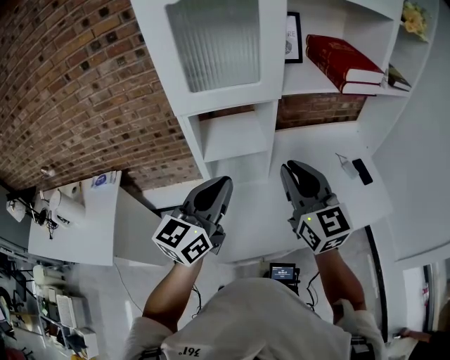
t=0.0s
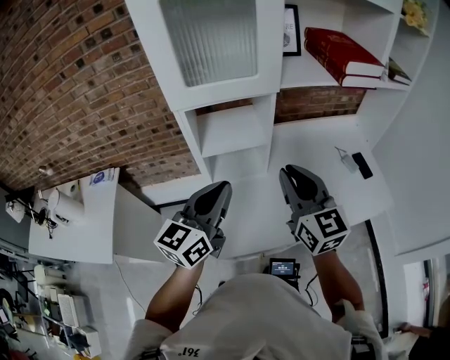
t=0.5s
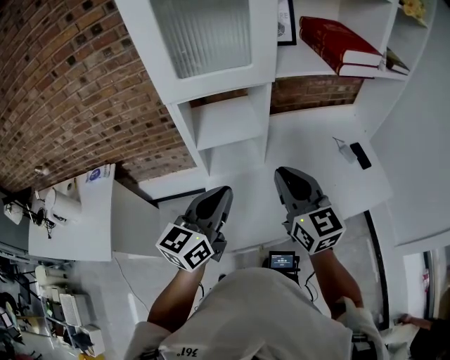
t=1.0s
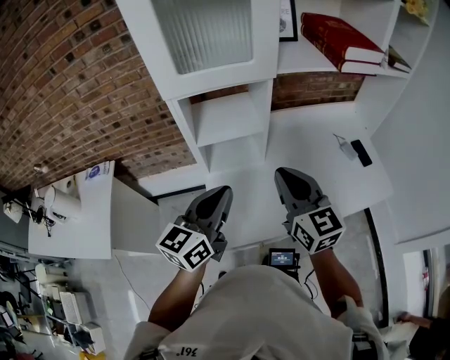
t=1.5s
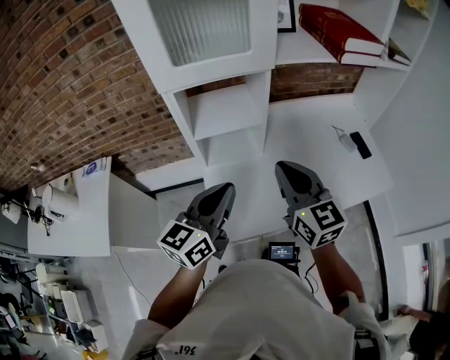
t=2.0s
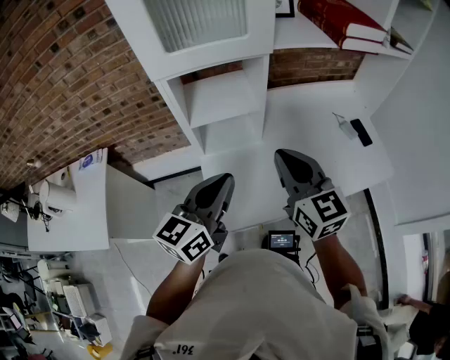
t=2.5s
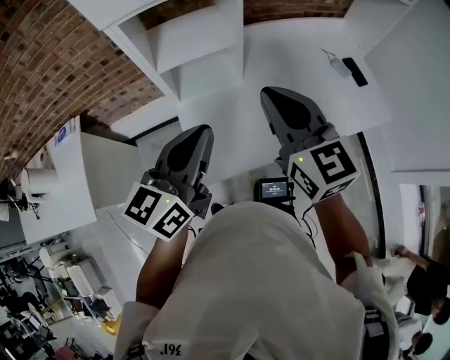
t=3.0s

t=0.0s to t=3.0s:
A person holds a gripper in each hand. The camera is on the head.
t=0.0s to t=1.5s: Both grippers travel together downward, some 5 cm.
t=1.5s to t=3.0s: There are only small adjustments of the grippers.

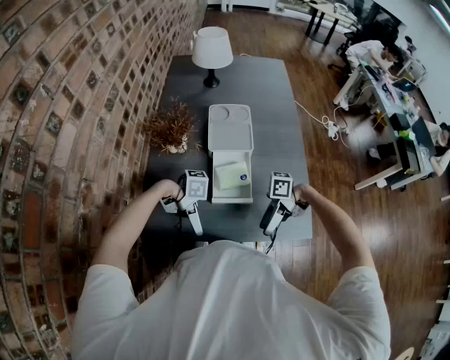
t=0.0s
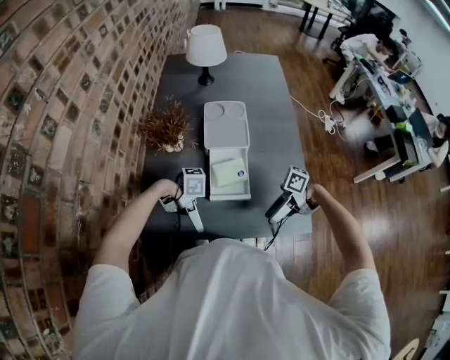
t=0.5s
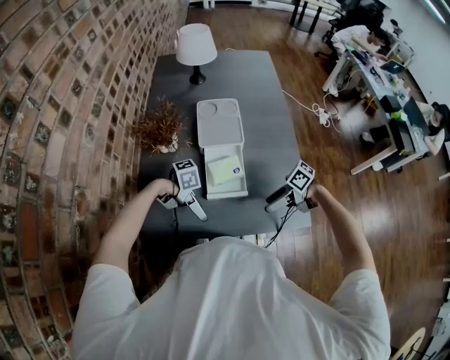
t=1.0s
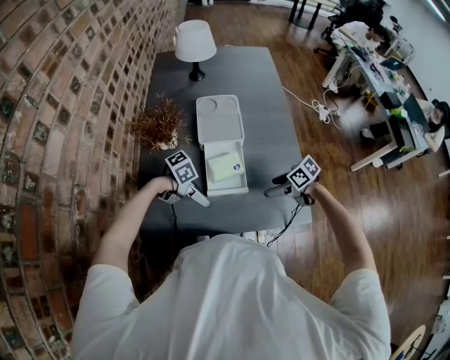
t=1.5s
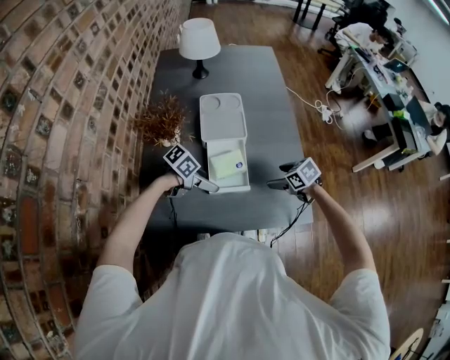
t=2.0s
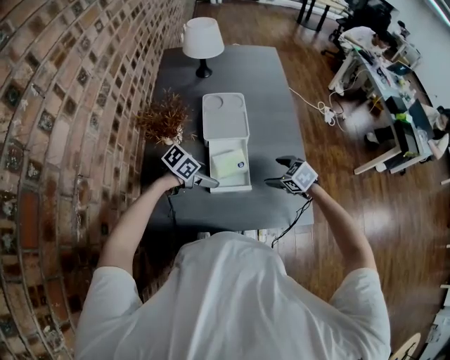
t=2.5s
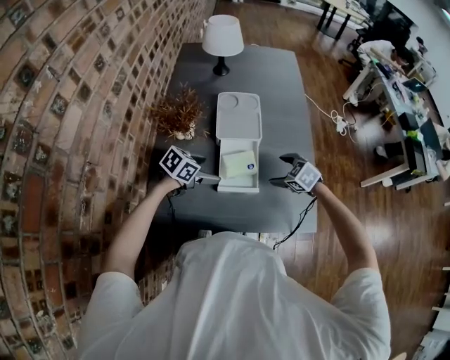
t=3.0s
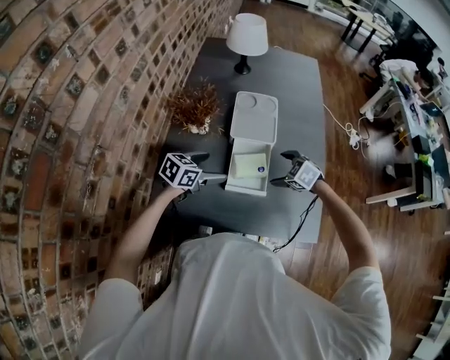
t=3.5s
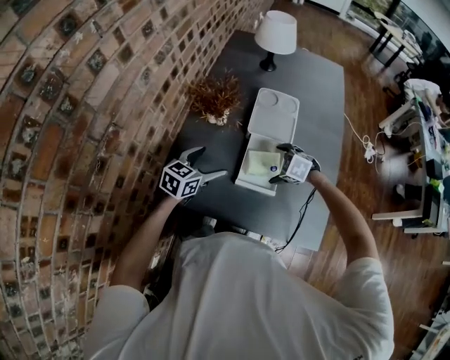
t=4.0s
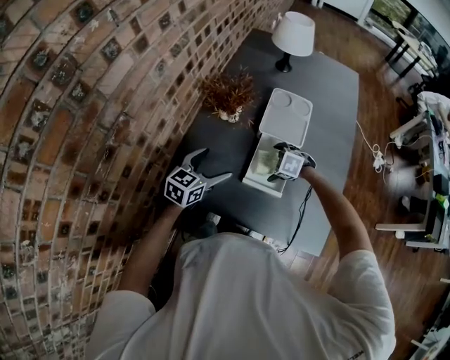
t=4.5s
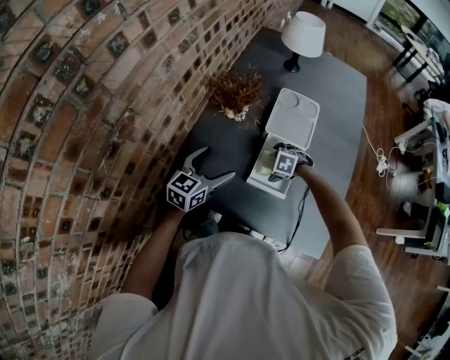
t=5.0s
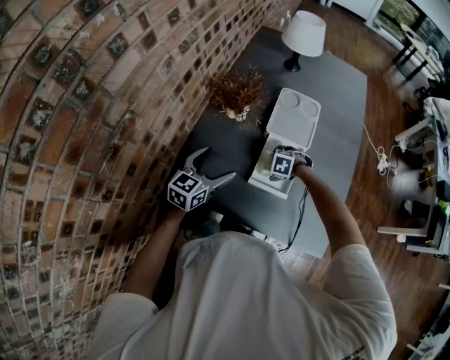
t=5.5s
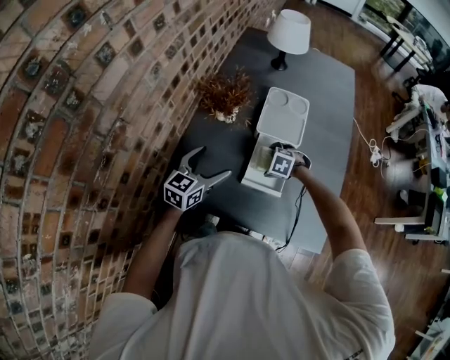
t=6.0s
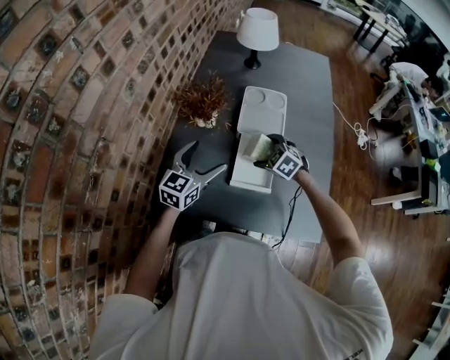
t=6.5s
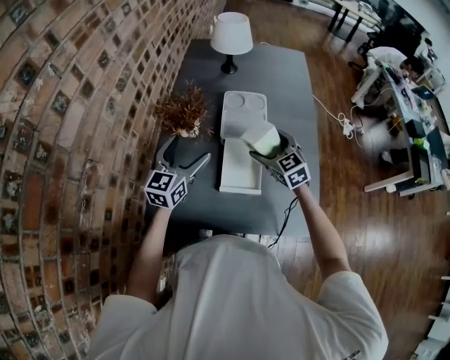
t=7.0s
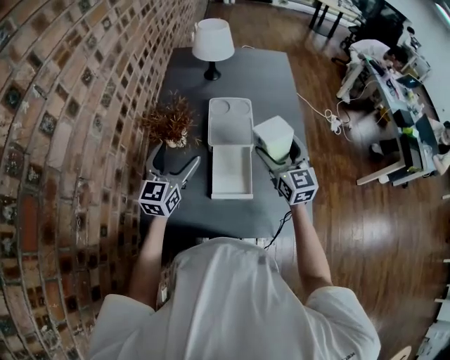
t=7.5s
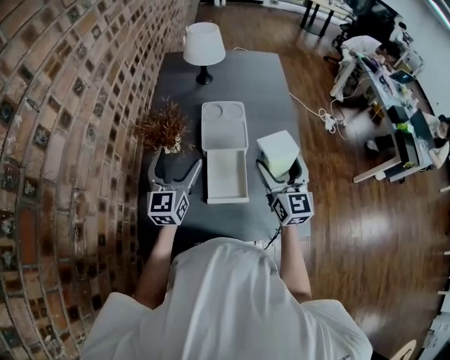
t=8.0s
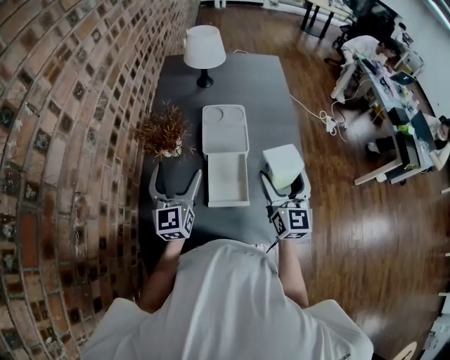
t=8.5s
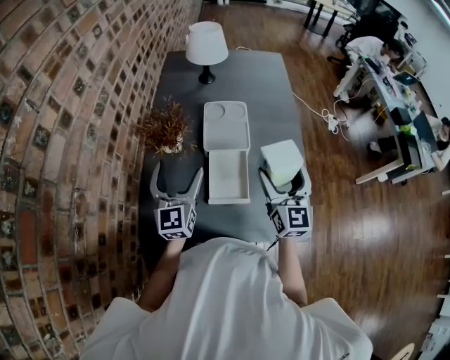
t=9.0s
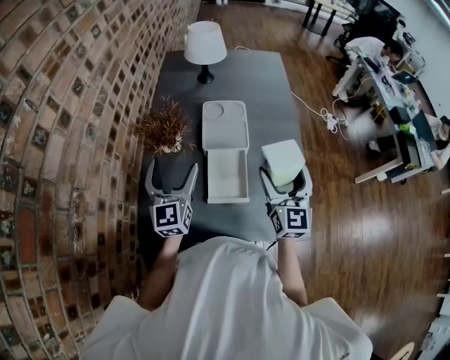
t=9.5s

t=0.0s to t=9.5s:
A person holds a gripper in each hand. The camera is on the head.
t=0.0s to t=2.0s: The right gripper shifts by about 20 cm, and points its fingers roughly 50 degrees further downward, while the left gripper changes place by roughly 15 cm, and swivels roughly 50 degrees.
t=2.0s to t=4.0s: The left gripper shifts by roughly 15 cm, and turns by about 60 degrees. Meanwhile the right gripper ends up some 15 cm from where it was, and rotates around the line of its fingers by about 50 degrees, counterclockwise from behind.
t=4.0s to t=5.5s: The right gripper moves downward, some 5 cm.
t=5.5s to t=7.5s: The left gripper travels upward by about 10 cm. Meanwhile the right gripper goes some 30 cm upward, and angles its fingers upward, by approximately 80 degrees.
t=7.5s to t=9.5s: The right gripper travels backward by approximately 5 cm.

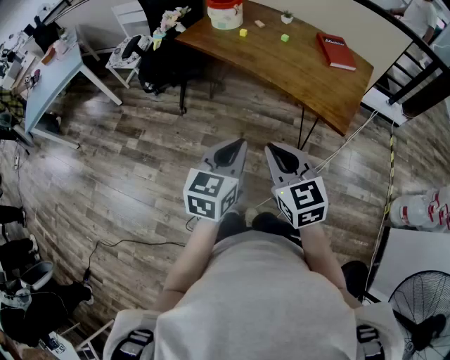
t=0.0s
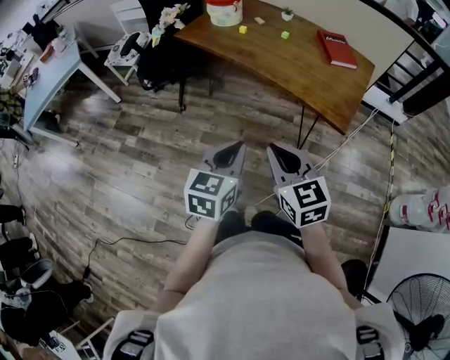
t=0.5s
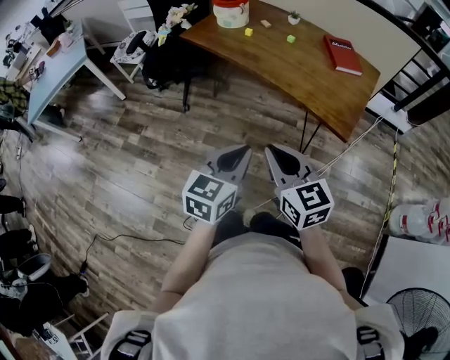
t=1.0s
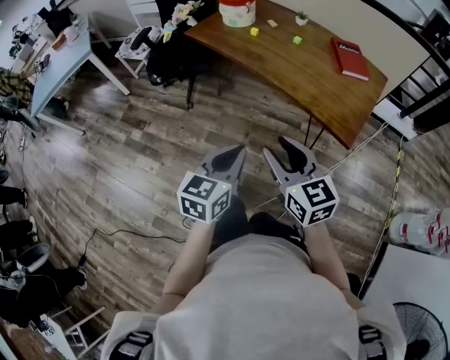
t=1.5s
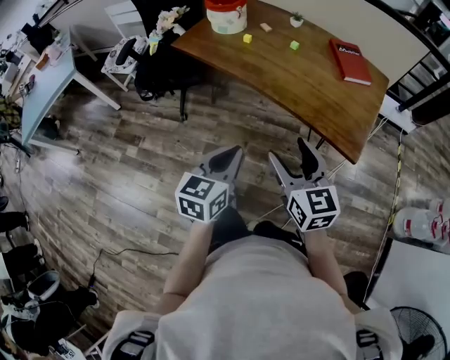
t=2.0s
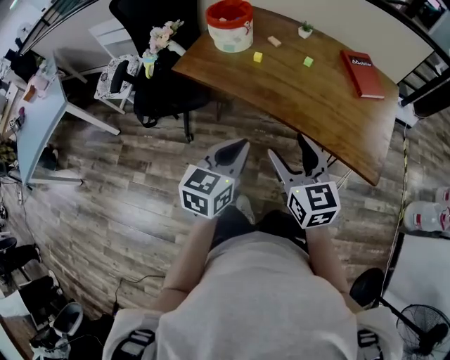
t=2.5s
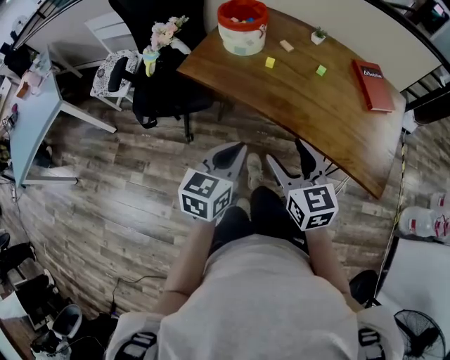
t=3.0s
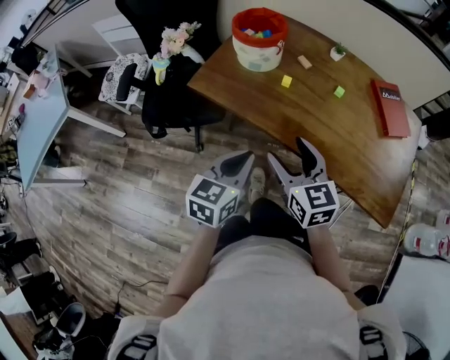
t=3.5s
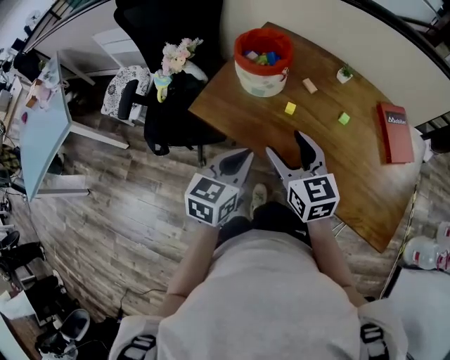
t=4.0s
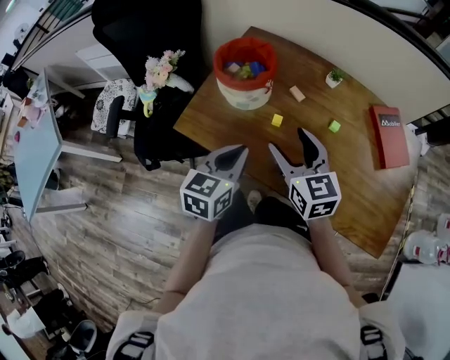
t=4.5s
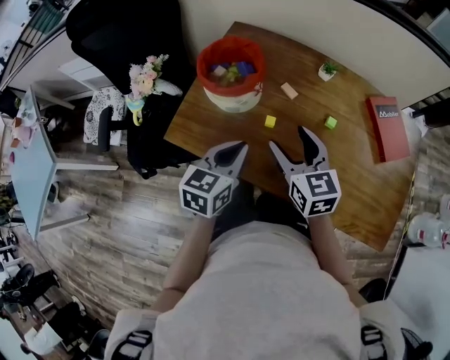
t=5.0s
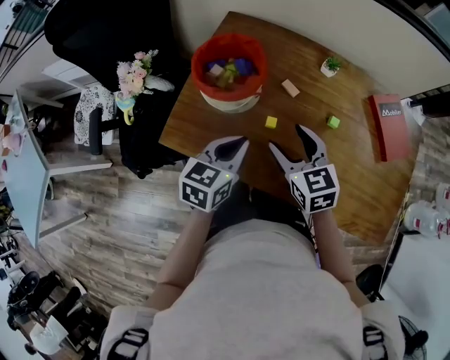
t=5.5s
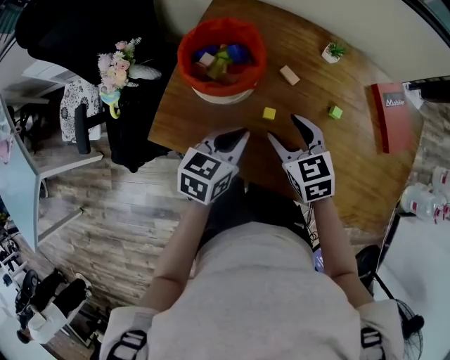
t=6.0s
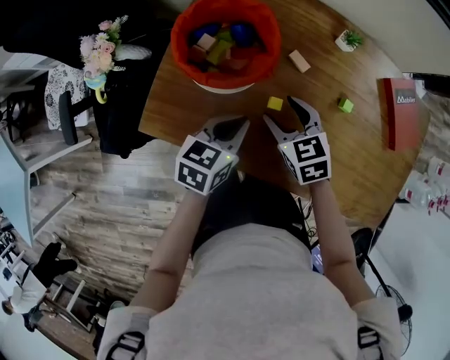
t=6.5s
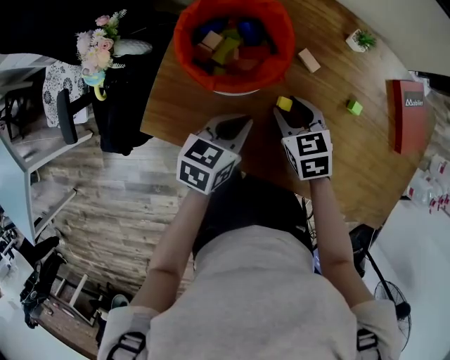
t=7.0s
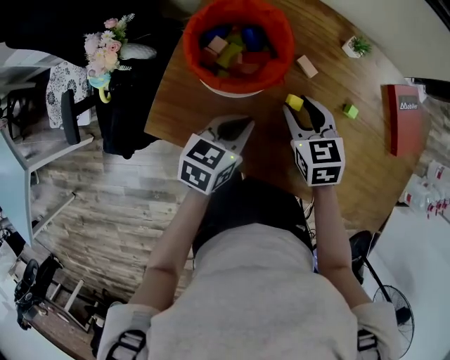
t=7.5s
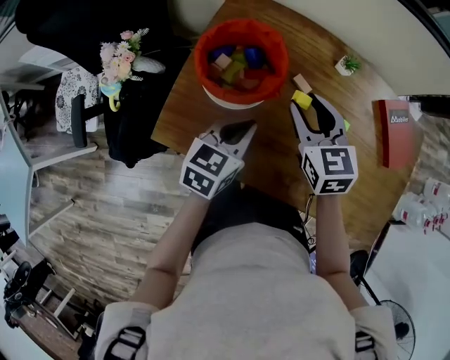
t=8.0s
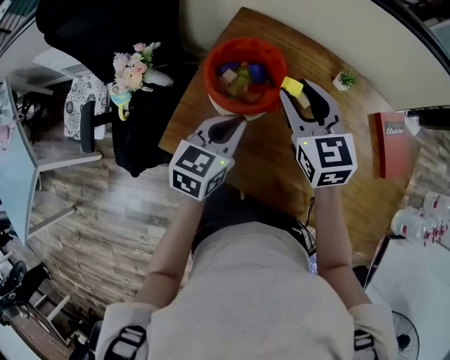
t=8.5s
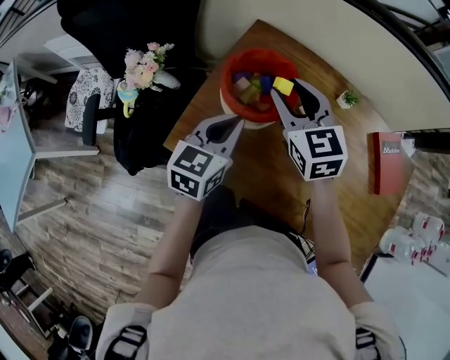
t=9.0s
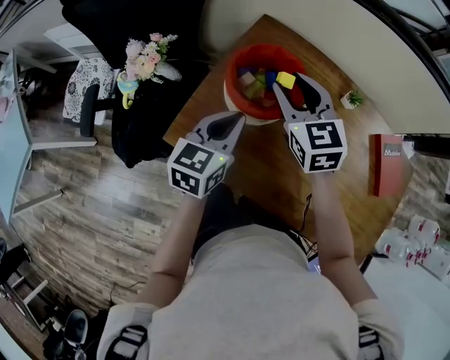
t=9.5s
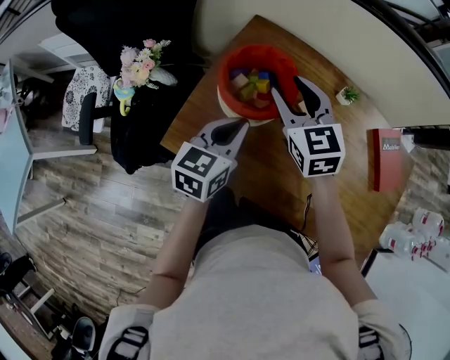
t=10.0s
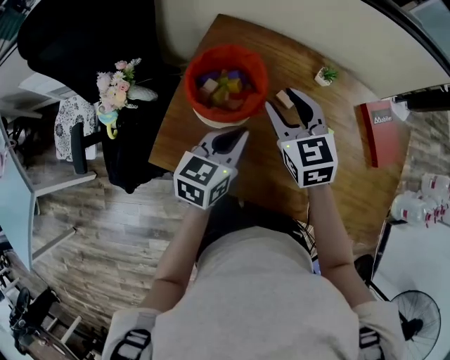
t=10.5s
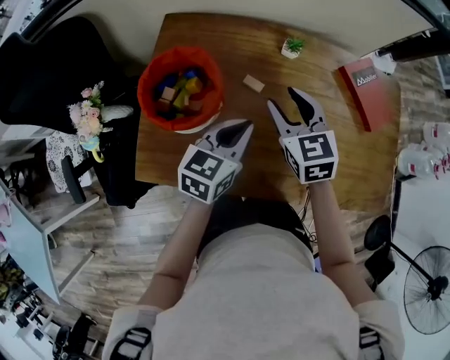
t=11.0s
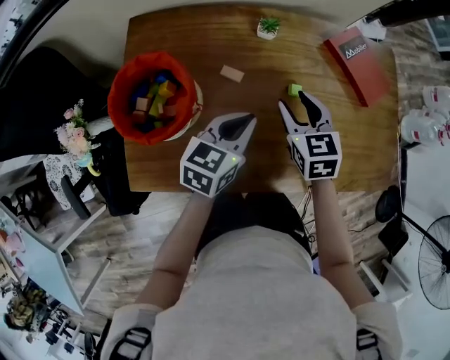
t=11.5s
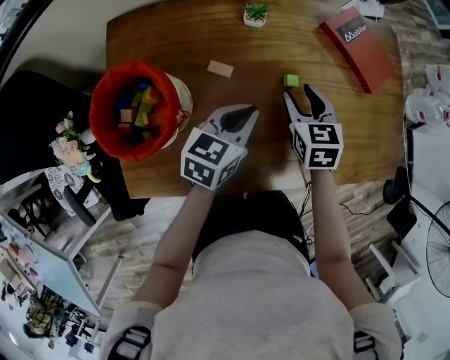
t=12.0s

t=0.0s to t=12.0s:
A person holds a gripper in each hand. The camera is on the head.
t=0.0s to t=2.0s: Both grippers move forward, approximately 15 cm. The right gripper opens its fingers.
t=2.0s to t=4.0s: The pair of grippers is taken forward and to the left, approximately 40 cm.
t=4.0s to t=6.0s: Both grippers move forward and downward, some 20 cm. The left gripper turns by roughly 20 degrees. Meanwhile the right gripper changes its angle by approximately 20 degrees.
t=6.0s to t=8.0s: The right gripper is displaced forward and upward by some 10 cm.
t=8.0s to t=10.0s: The two grippers go approximately 10 cm to the left and upward.
t=10.0s to t=12.0s: The right gripper moves some 35 cm, and rotates about 50 degrees. The left gripper changes place by roughly 25 cm, and turns by roughly 40 degrees.

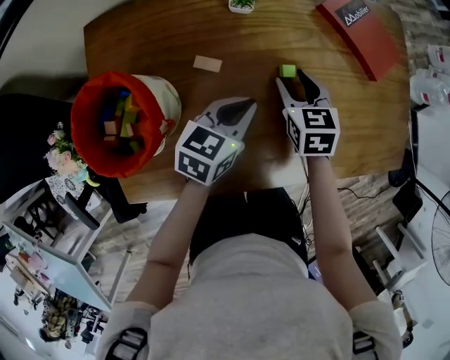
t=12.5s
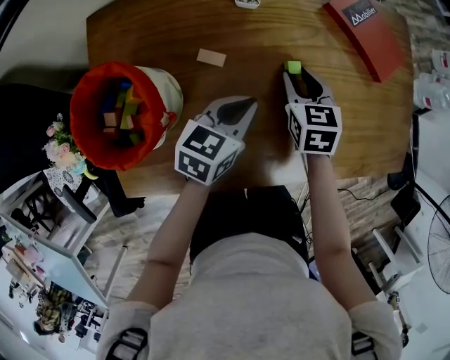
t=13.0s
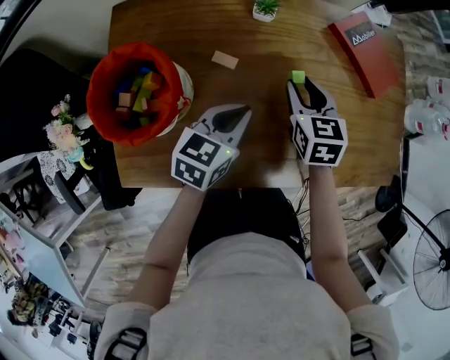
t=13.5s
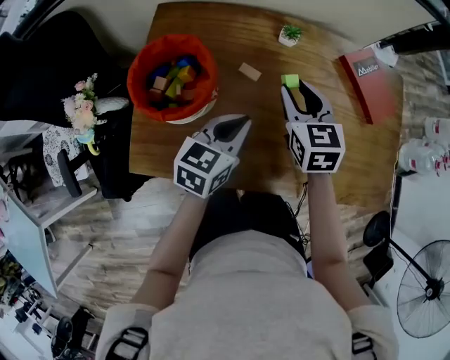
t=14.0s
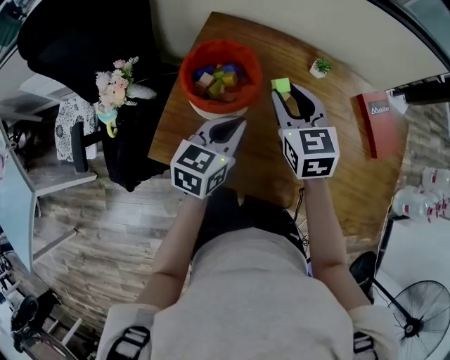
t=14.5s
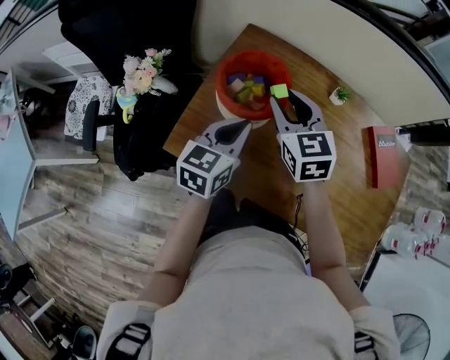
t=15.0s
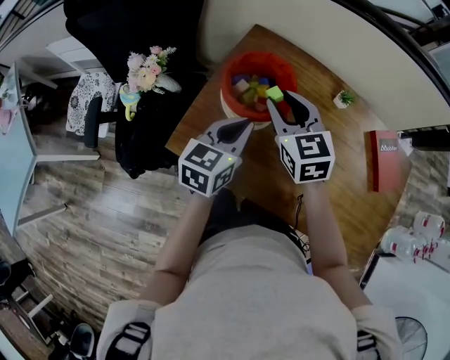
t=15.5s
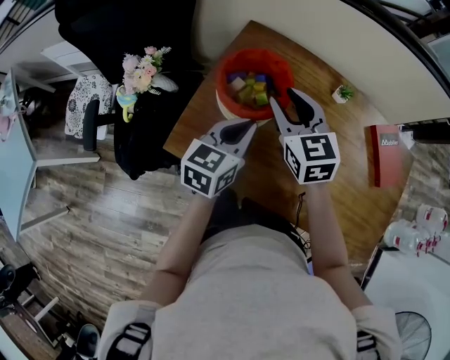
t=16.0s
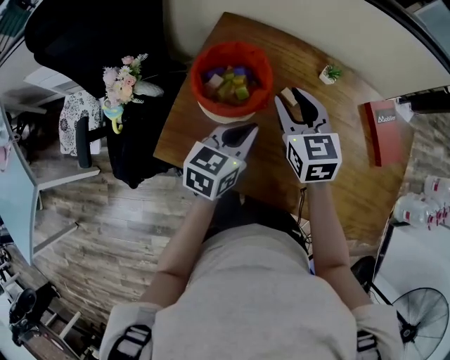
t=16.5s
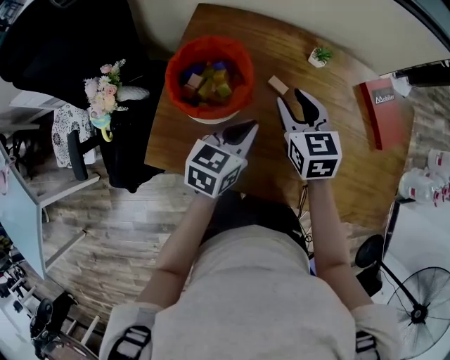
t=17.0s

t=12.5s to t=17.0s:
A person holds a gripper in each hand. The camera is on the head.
t=12.5s to t=14.5s: The right gripper changes place by approximately 30 cm, and rotates about 40 degrees; the left gripper changes place by roughly 20 cm, and swivels some 30 degrees.
t=14.5s to t=17.0s: The left gripper moves roughly 5 cm. Meanwhile the right gripper goes roughly 5 cm downward, and moves approximately 10 cm to the left and comes back.
